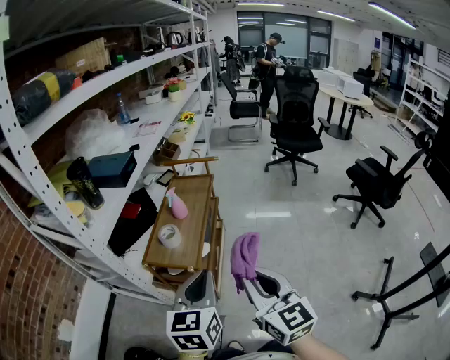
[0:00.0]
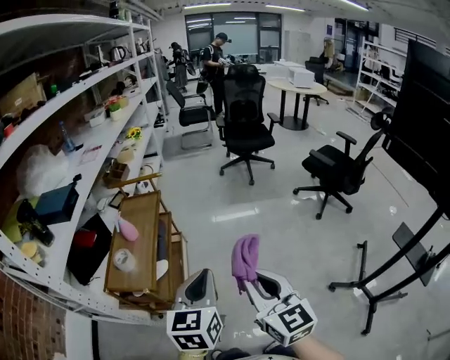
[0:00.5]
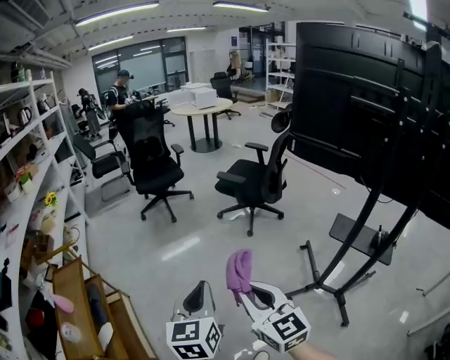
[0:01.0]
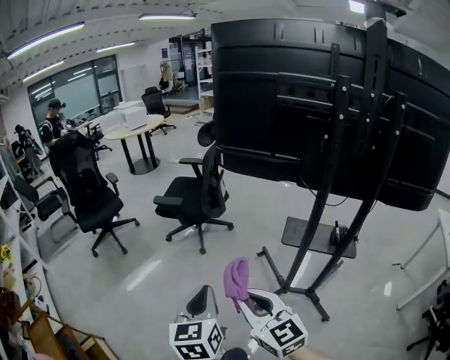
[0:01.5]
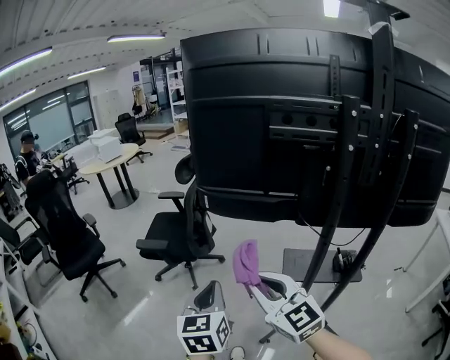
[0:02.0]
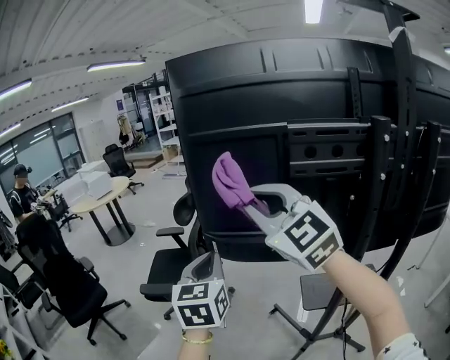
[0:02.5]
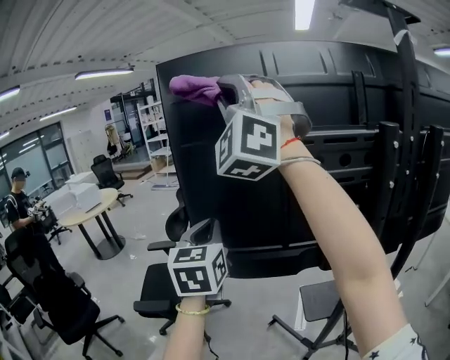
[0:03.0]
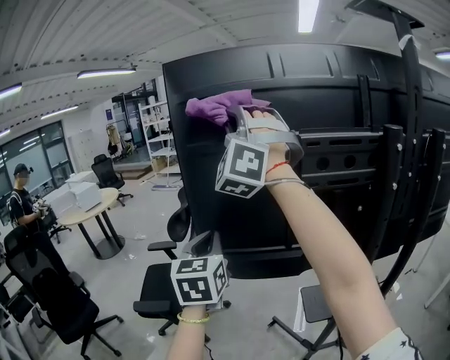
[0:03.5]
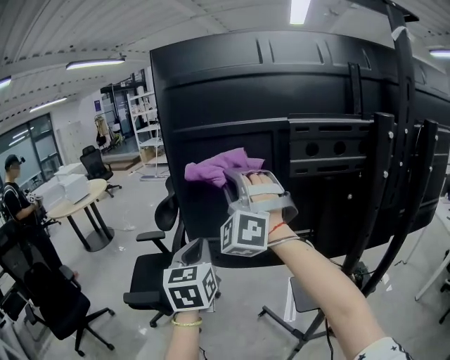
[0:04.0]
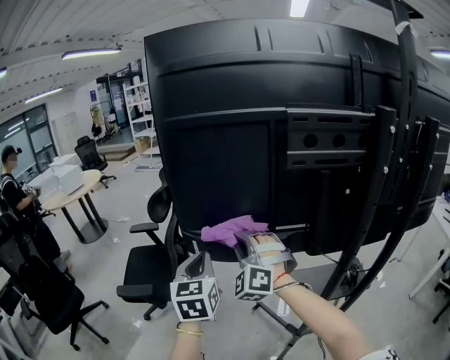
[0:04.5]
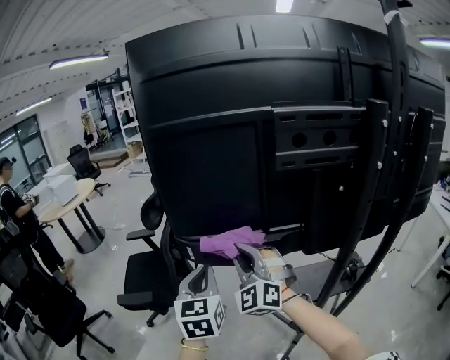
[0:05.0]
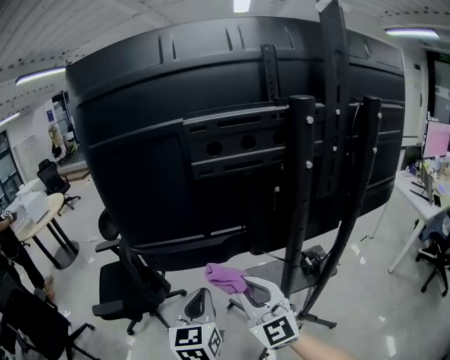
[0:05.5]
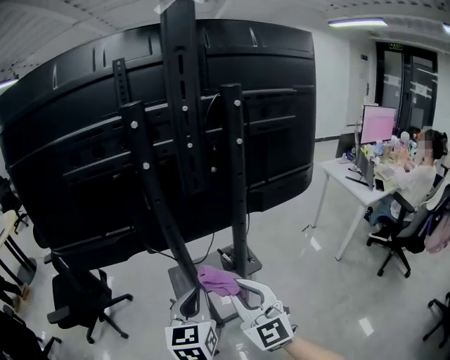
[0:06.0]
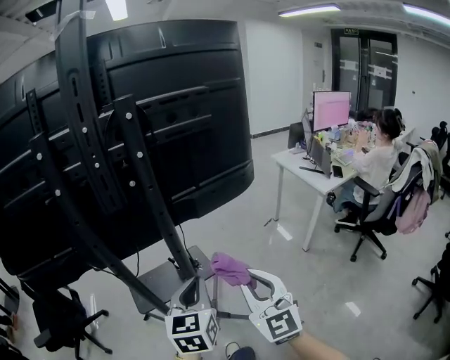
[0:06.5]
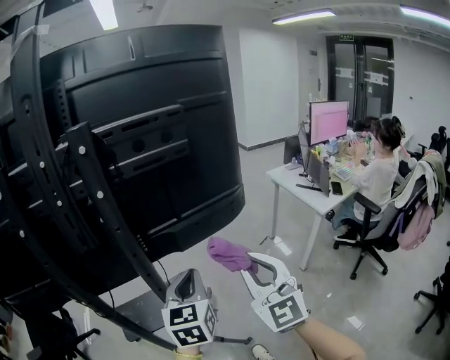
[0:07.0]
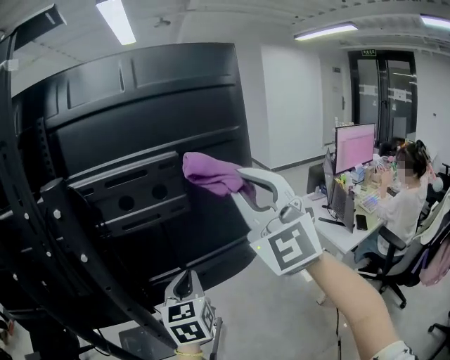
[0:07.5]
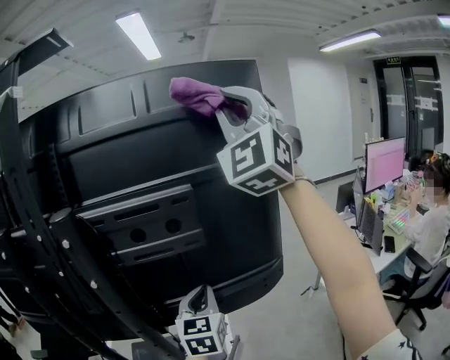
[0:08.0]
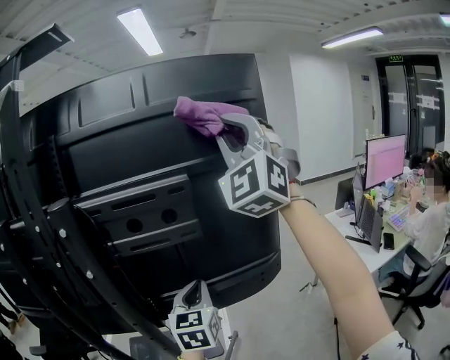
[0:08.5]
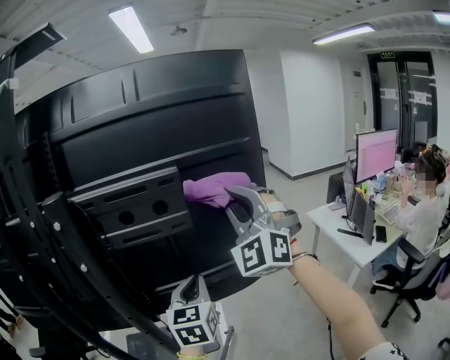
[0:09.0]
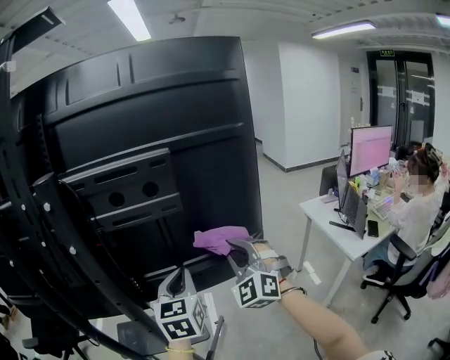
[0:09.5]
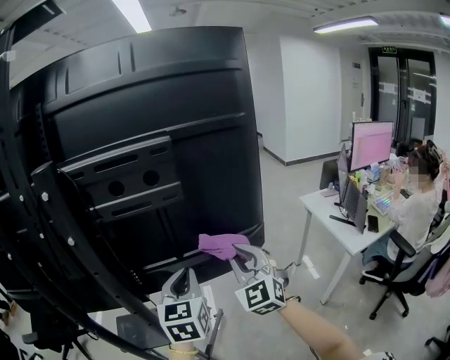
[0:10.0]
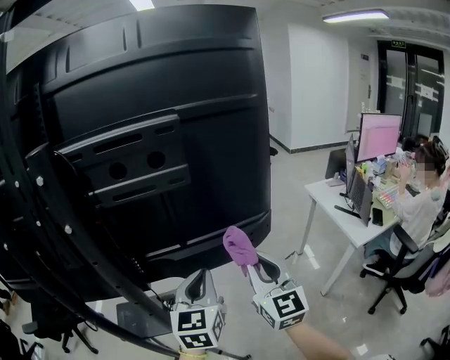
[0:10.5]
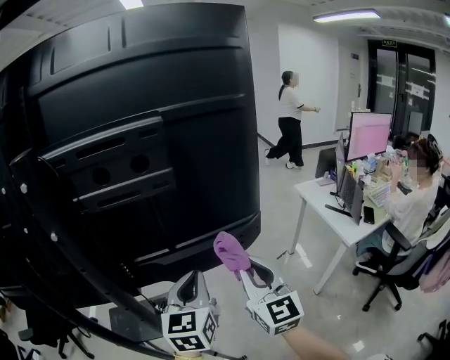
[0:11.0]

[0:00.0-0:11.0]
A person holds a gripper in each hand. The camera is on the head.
0:00.0 to 0:02.0: Both grippers are carried approximately 90 cm. The left gripper changes its angle by roughly 60 degrees, while the right gripper rotates approximately 60 degrees.
0:02.0 to 0:03.5: The left gripper ends up approximately 35 cm from where it was. Meanwhile the right gripper moves upward, about 40 cm, and twists some 70 degrees counterclockwise, seen from behind.
0:03.5 to 0:05.5: The left gripper is displaced downward, to the right and backward by roughly 25 cm. The right gripper travels downward, backward and to the right by approximately 50 cm, and rotates around the line of its fingers by some 60 degrees, clockwise from behind.
0:05.5 to 0:07.5: The pair of grippers is taken approximately 70 cm. The right gripper rotates some 40 degrees.
0:07.5 to 0:09.0: The right gripper goes about 10 cm forward, goes upward and returns, some 20 cm each way, and rotates some 20 degrees.
0:09.0 to 0:11.0: The right gripper goes roughly 25 cm downward, and twists roughly 60 degrees clockwise, seen from behind. The left gripper is displaced downward by about 5 cm.

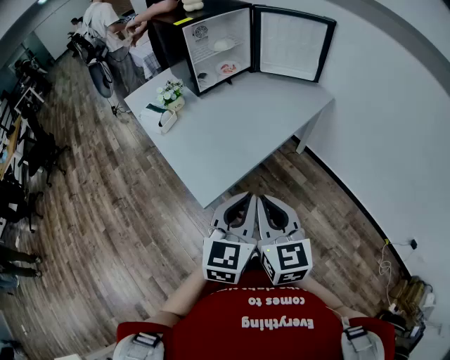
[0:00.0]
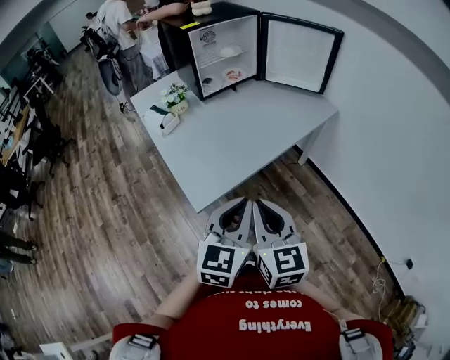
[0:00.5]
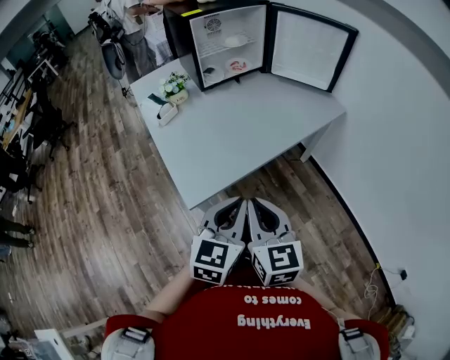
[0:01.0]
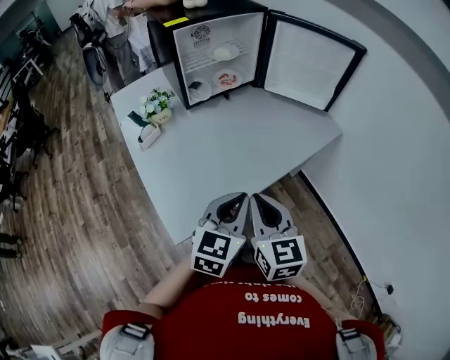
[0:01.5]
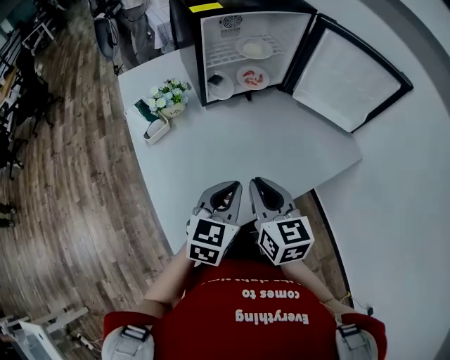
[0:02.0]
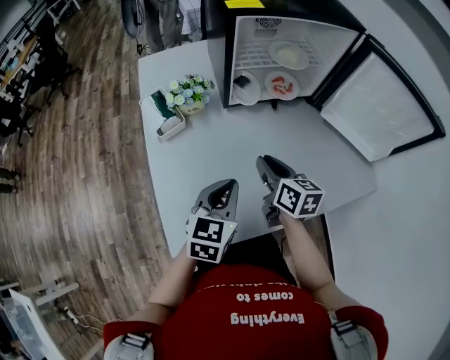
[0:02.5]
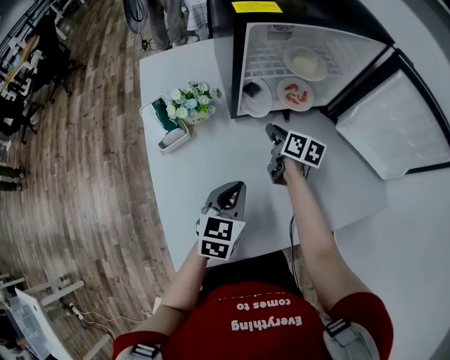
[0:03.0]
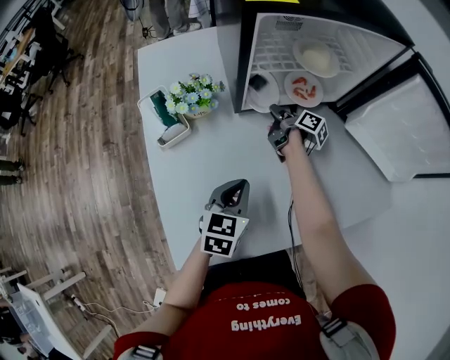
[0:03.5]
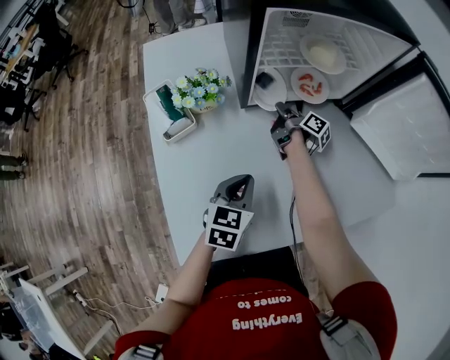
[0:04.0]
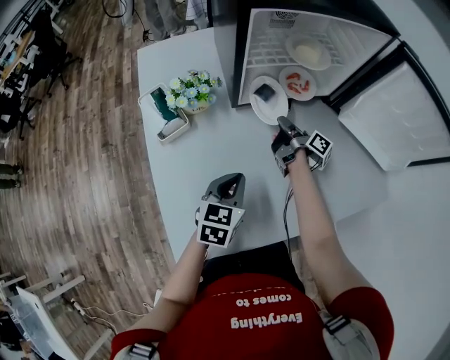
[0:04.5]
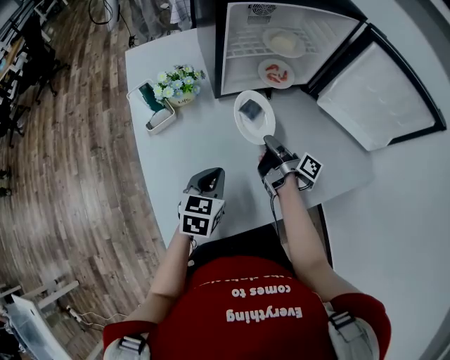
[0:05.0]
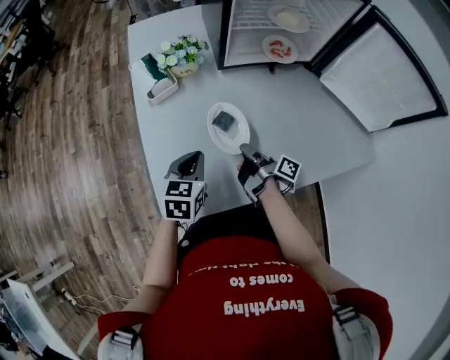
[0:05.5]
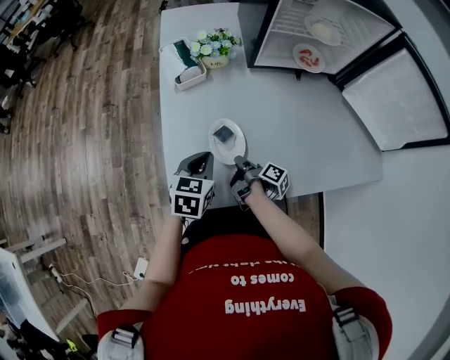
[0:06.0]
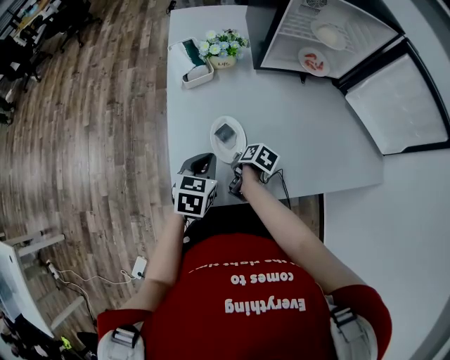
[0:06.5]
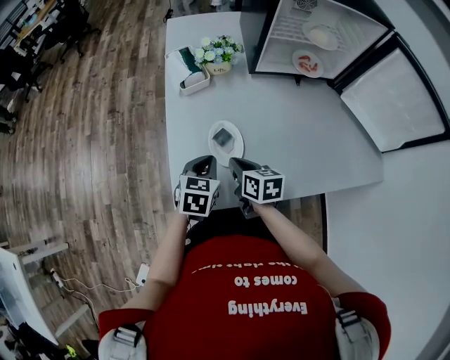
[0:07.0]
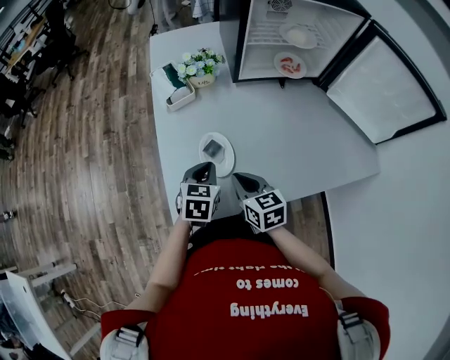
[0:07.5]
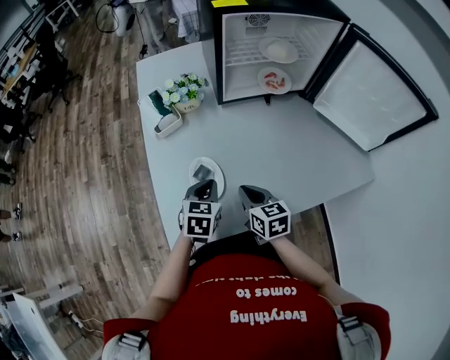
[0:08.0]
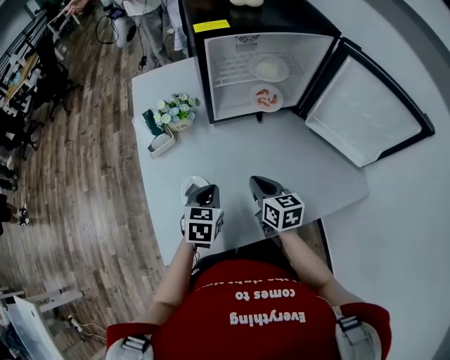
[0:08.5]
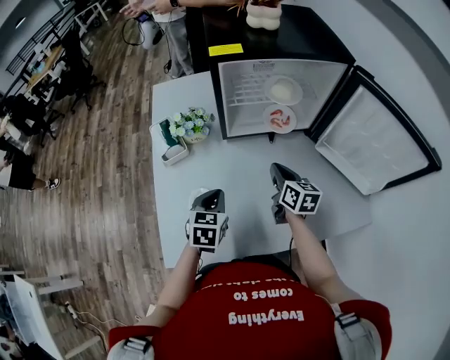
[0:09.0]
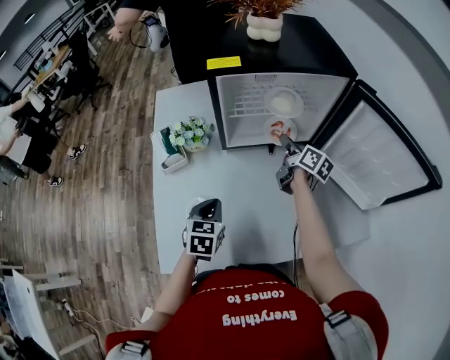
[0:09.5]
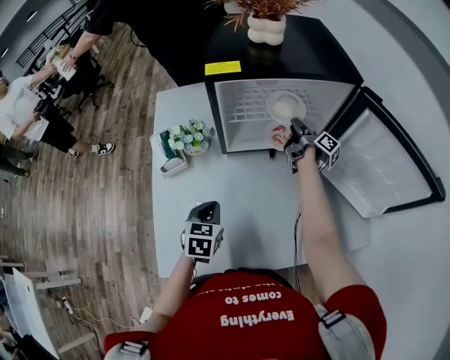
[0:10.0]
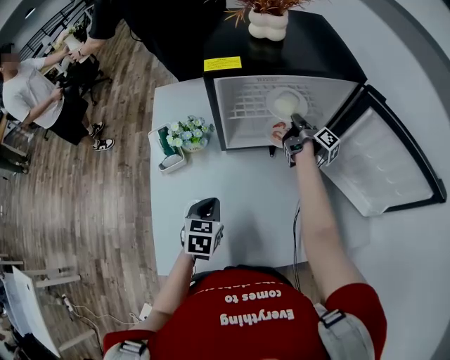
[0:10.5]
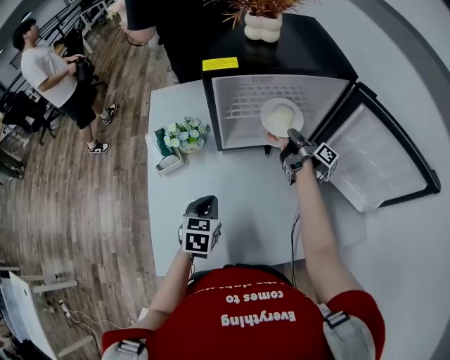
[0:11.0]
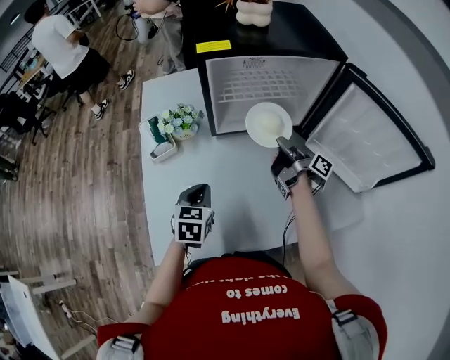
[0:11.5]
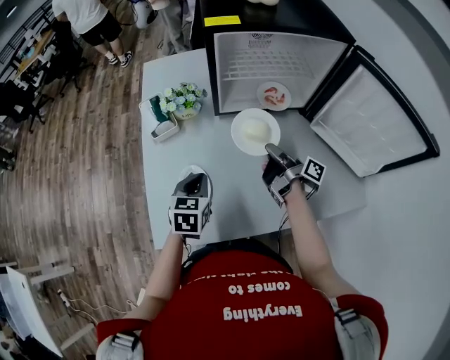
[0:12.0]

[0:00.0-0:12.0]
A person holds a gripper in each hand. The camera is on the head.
0:00.0 to 0:02.0: The left gripper moves approximately 35 cm.
0:02.0 to 0:04.0: The left gripper moves roughly 20 cm.
0:04.0 to 0:06.0: The left gripper ends up about 20 cm from where it was.
0:06.0 to 0:08.0: The left gripper changes place by approximately 10 cm.
0:08.0 to 0:10.0: The left gripper shifts by some 15 cm.
0:10.0 to 0:12.0: The left gripper changes place by approximately 5 cm.

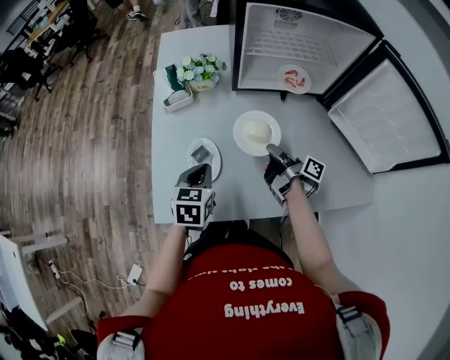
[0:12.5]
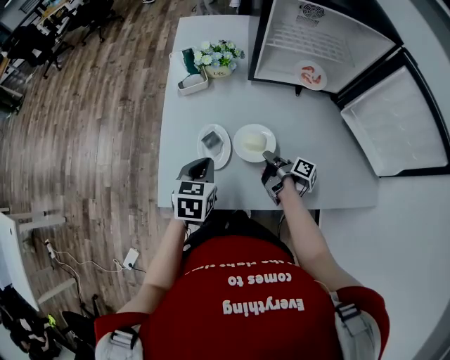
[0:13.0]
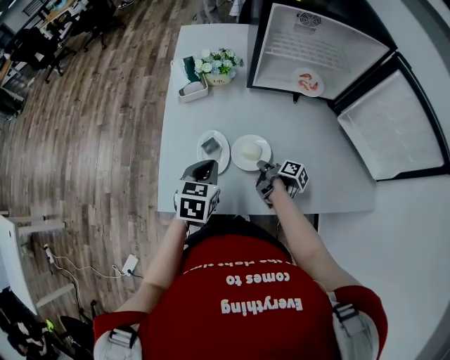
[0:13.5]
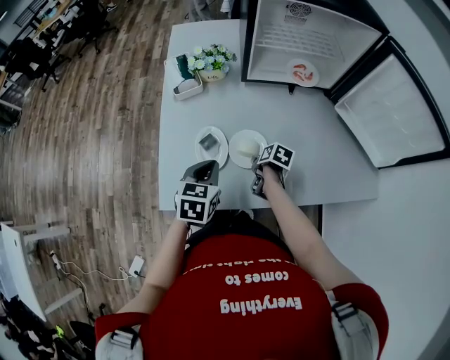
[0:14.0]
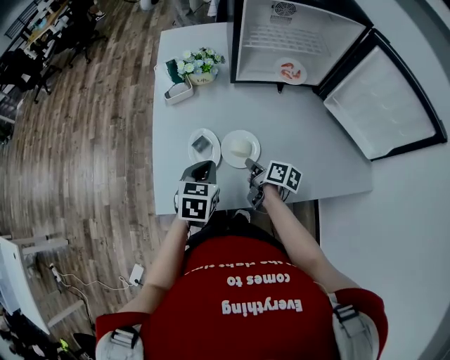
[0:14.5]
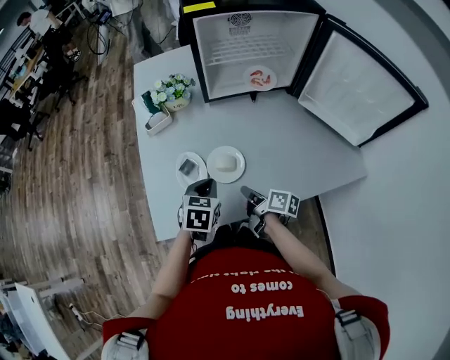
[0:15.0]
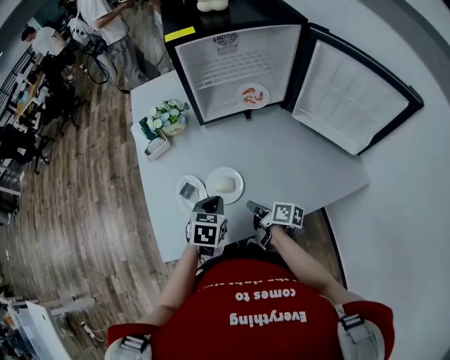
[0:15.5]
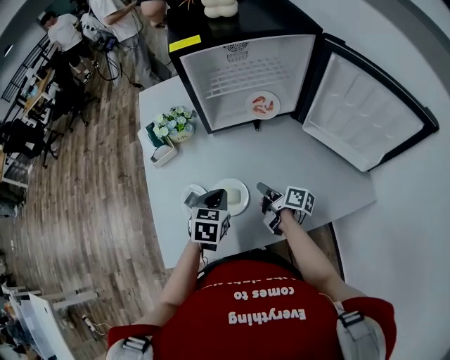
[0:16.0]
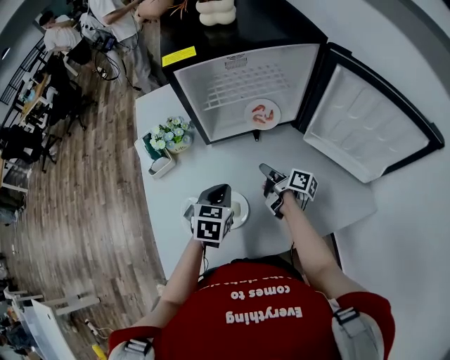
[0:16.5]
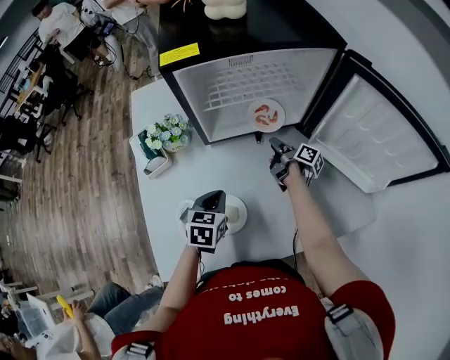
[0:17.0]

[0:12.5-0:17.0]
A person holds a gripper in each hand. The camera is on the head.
0:14.5 to 0:17.0: The left gripper changes place by approximately 20 cm.
